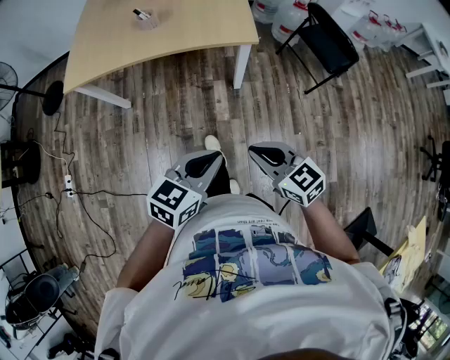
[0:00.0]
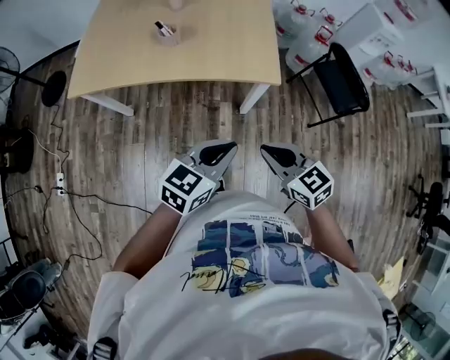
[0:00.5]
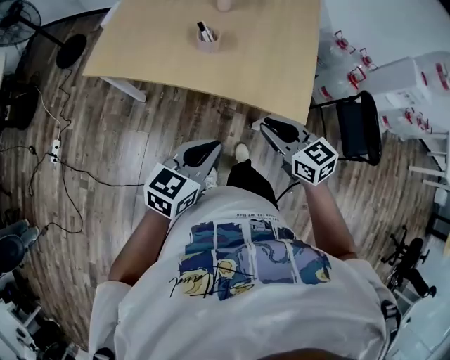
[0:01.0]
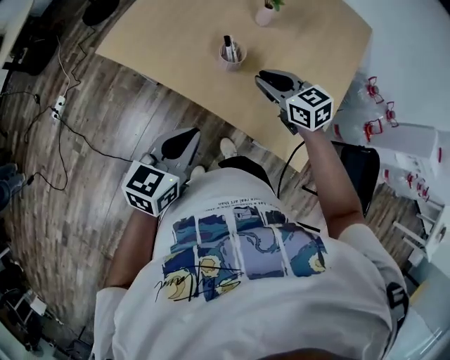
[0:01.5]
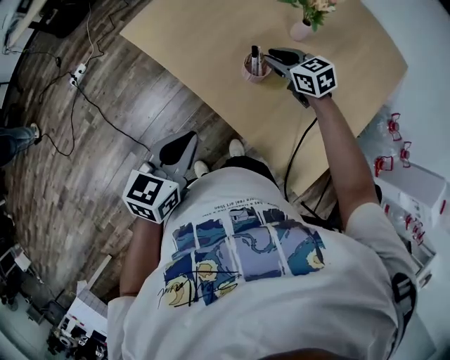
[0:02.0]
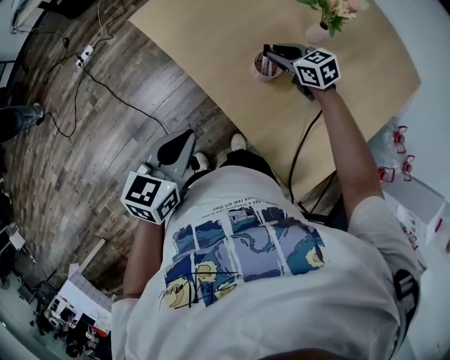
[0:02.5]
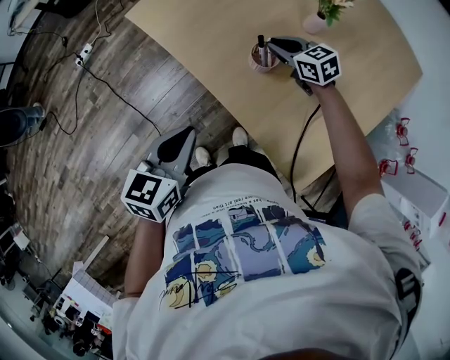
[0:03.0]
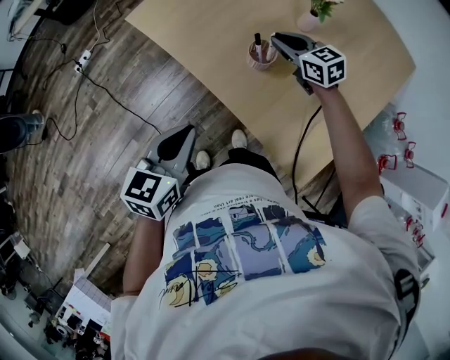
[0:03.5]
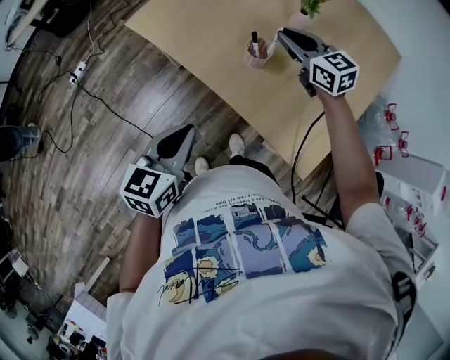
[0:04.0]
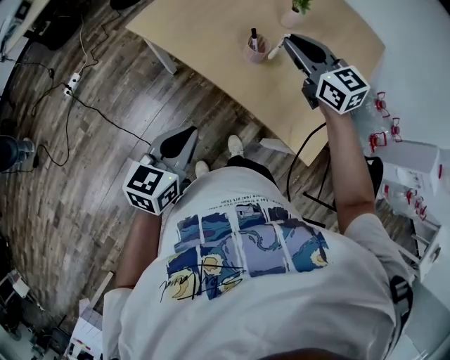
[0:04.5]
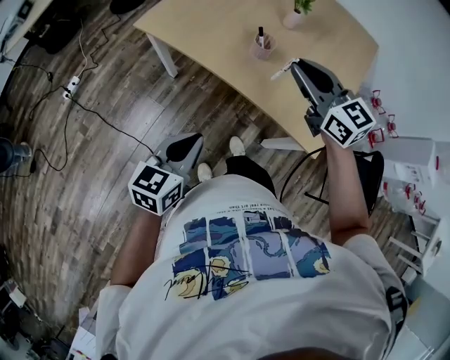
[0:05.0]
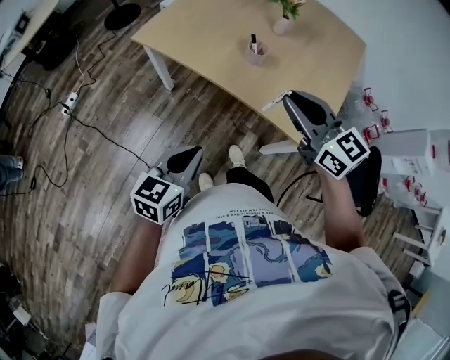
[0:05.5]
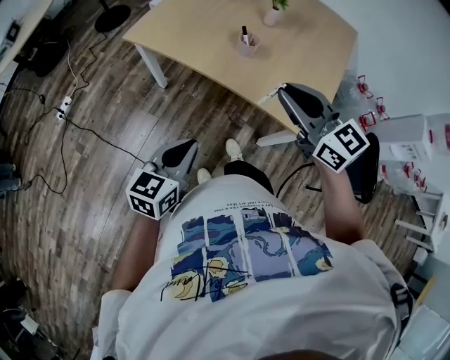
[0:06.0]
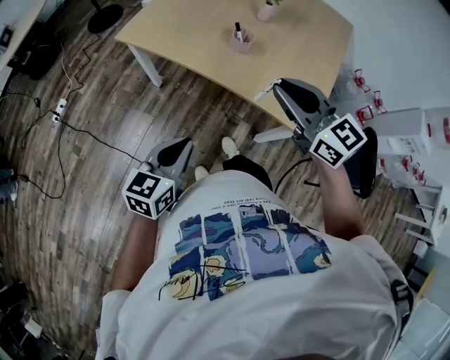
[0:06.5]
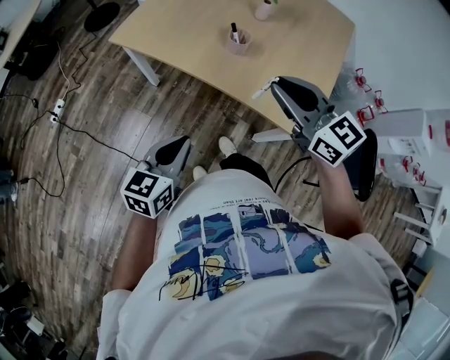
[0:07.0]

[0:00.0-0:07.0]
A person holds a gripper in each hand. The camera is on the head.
0:00.0 to 0:02.0: The pair of grippers is taken roughly 60 cm. The right gripper swivels some 50 degrees. The left gripper turns by approximately 60 degrees.
0:02.0 to 0:03.5: The grippers move only a little.
0:03.5 to 0:05.0: The left gripper heads backward and to the left, covering roughly 15 cm. Meanwhile the right gripper goes about 30 cm backward and upward, and swivels roughly 20 degrees.
0:05.0 to 0:07.0: The right gripper shifts about 5 cm backward.

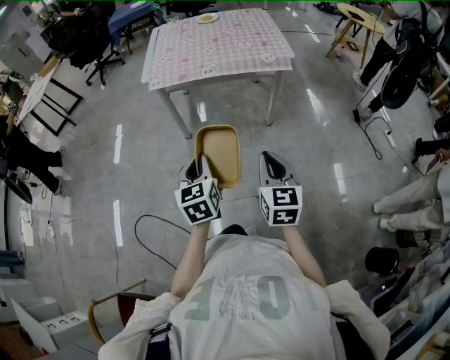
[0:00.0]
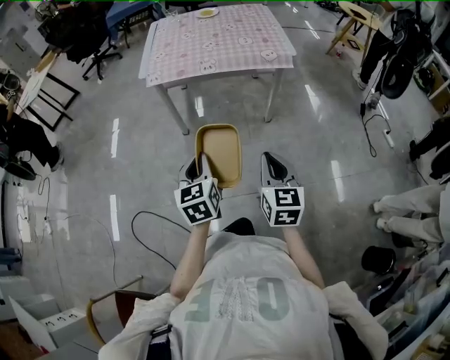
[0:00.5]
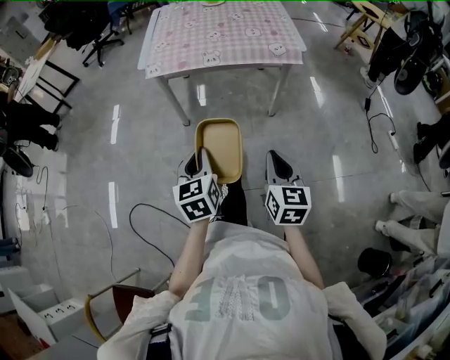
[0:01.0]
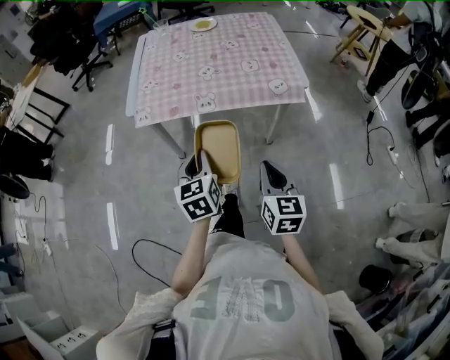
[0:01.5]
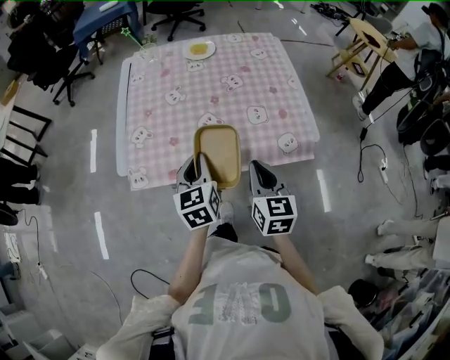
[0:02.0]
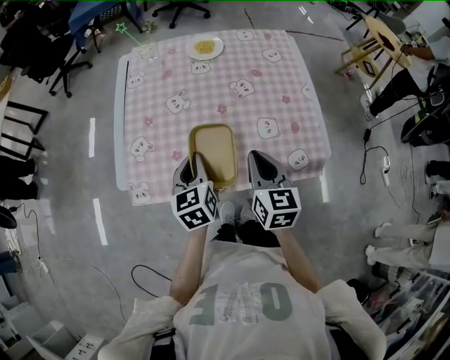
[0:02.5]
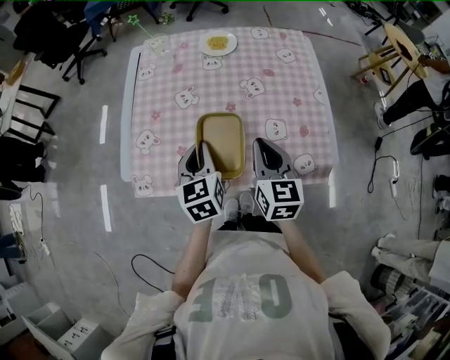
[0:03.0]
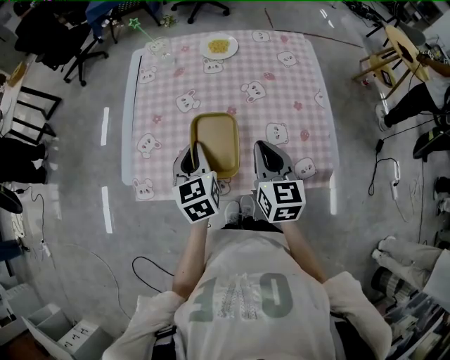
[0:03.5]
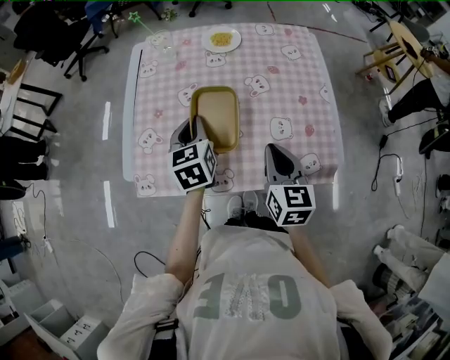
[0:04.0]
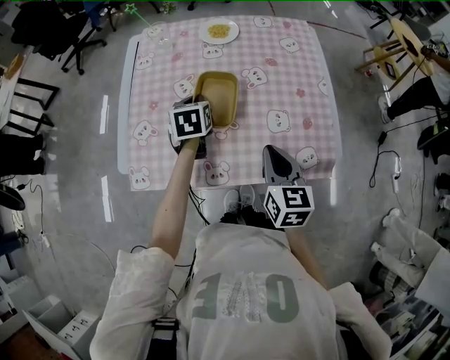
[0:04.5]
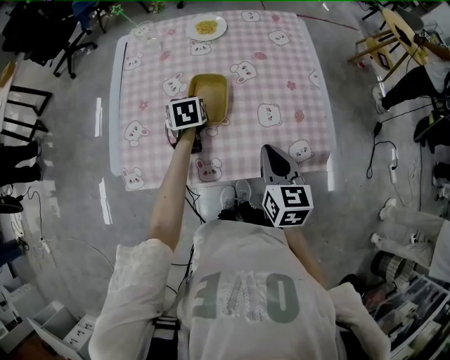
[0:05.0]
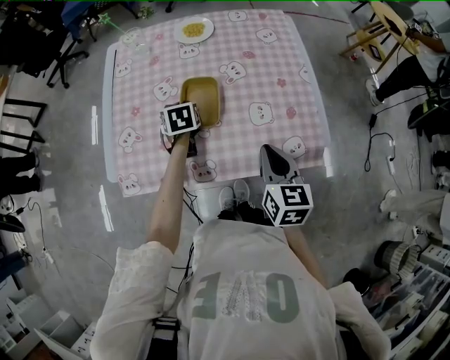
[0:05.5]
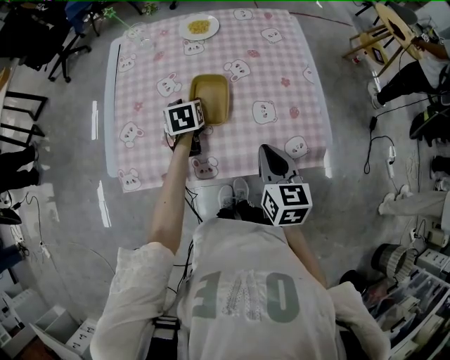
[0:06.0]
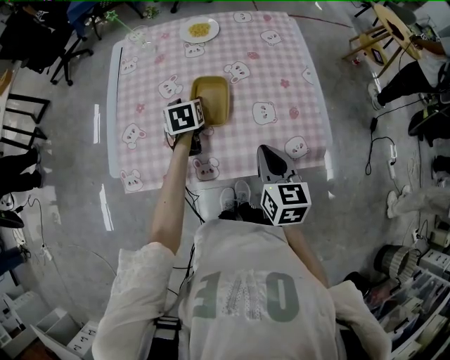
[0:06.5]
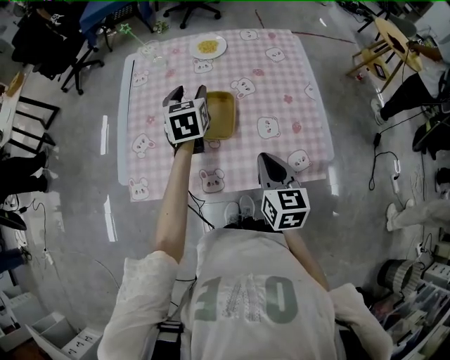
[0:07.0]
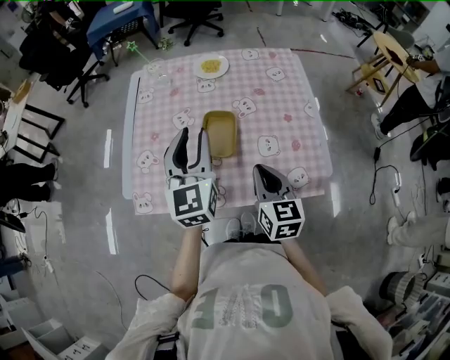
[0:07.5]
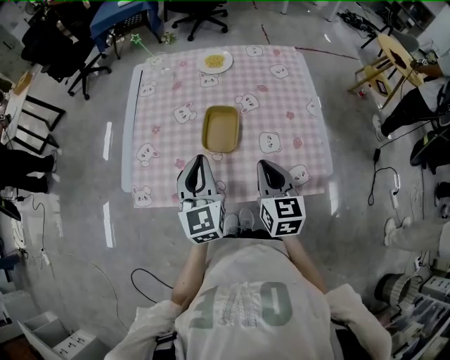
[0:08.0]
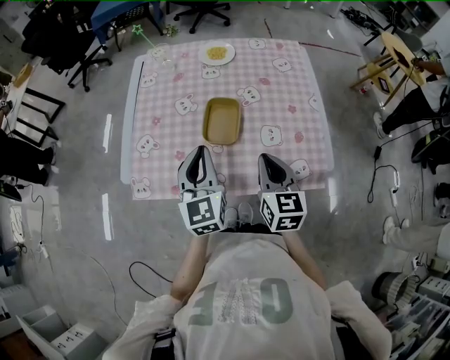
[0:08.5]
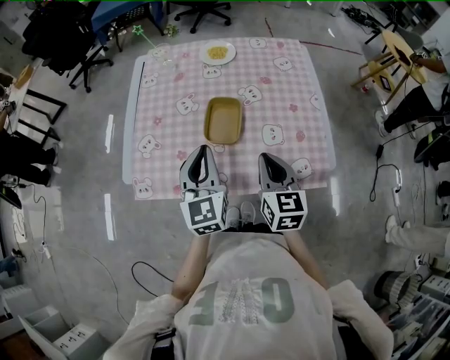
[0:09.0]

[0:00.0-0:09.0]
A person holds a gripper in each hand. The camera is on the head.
0:00.0 to 0:02.0: The pair of grippers is taken forward, about 50 cm.
0:02.0 to 0:04.5: The left gripper shifts about 25 cm forward, and turns by about 20 degrees; the right gripper shifts roughly 10 cm forward.
0:04.5 to 0:07.0: The left gripper heads upward, covering roughly 10 cm, and opens.
0:07.0 to 0:09.0: The left gripper moves backward, approximately 20 cm, and closes.

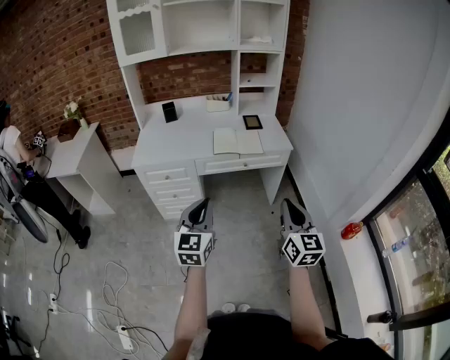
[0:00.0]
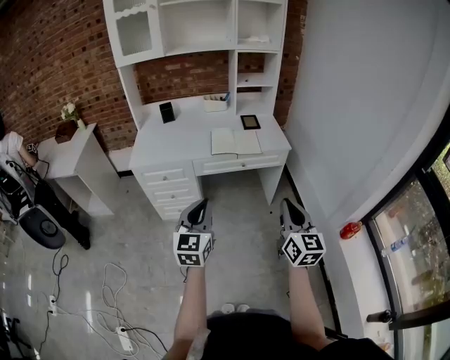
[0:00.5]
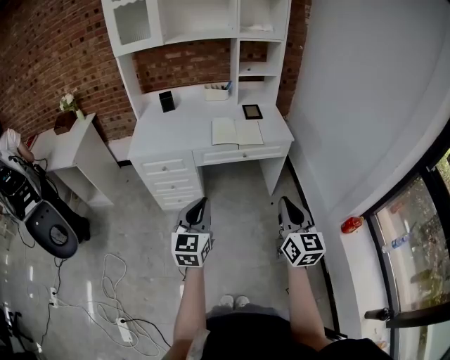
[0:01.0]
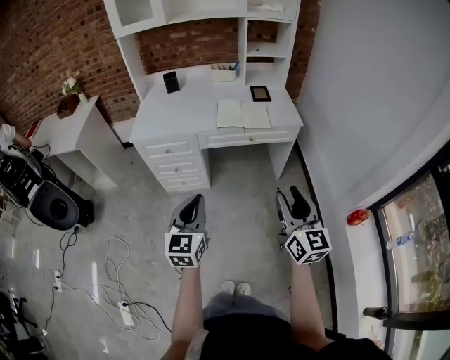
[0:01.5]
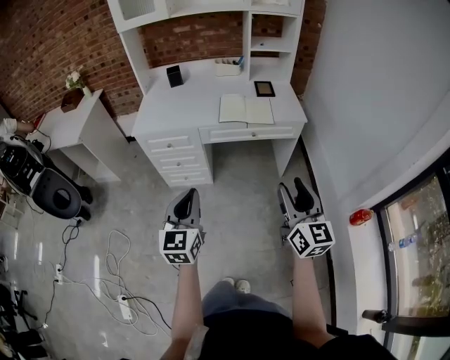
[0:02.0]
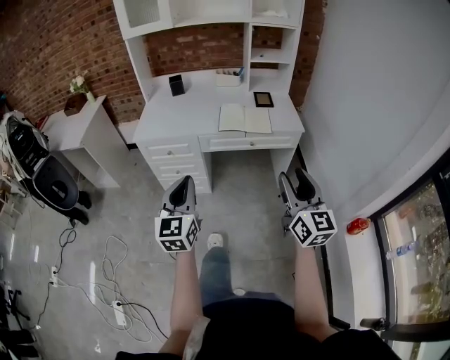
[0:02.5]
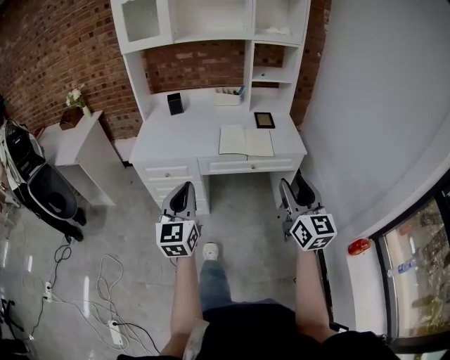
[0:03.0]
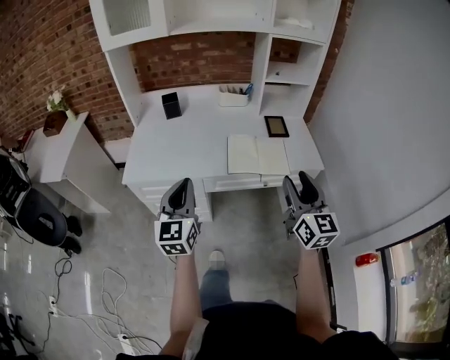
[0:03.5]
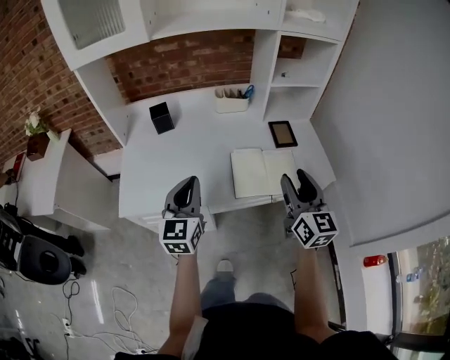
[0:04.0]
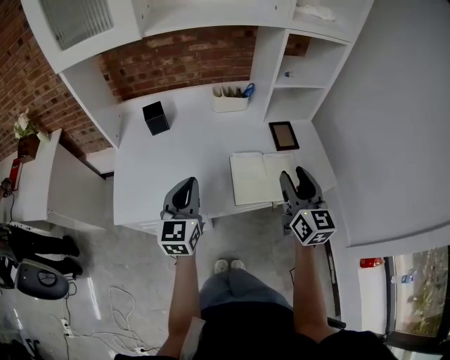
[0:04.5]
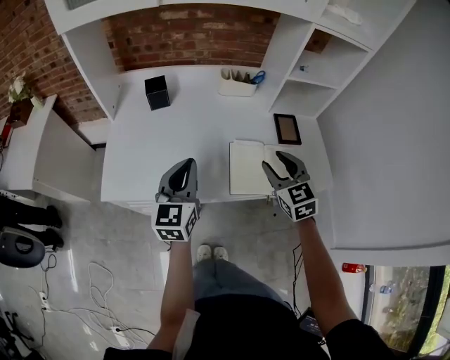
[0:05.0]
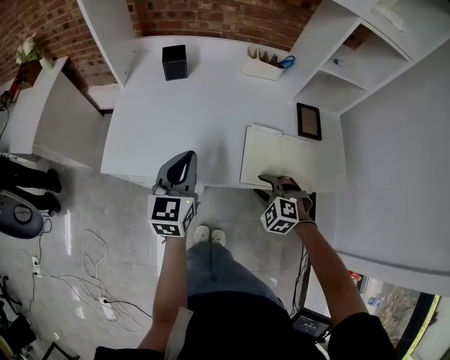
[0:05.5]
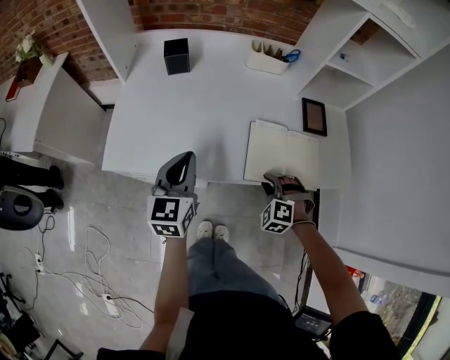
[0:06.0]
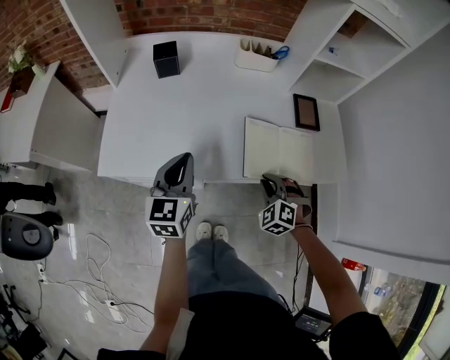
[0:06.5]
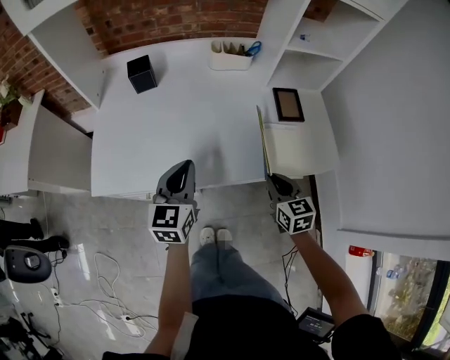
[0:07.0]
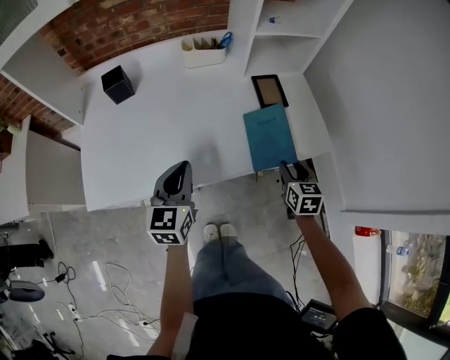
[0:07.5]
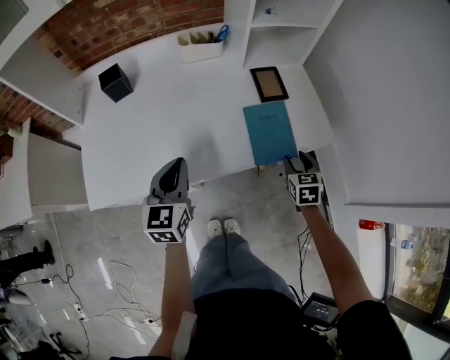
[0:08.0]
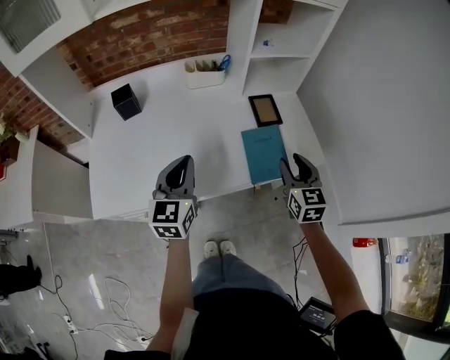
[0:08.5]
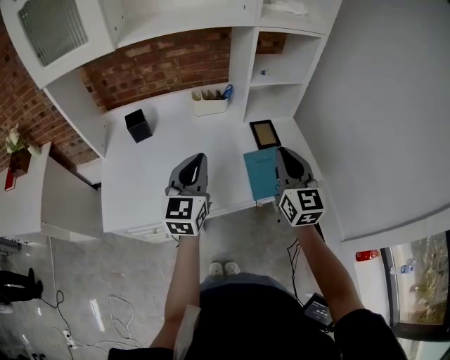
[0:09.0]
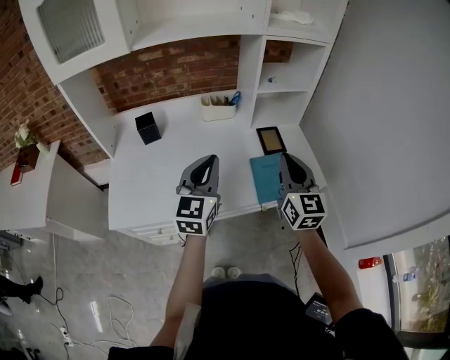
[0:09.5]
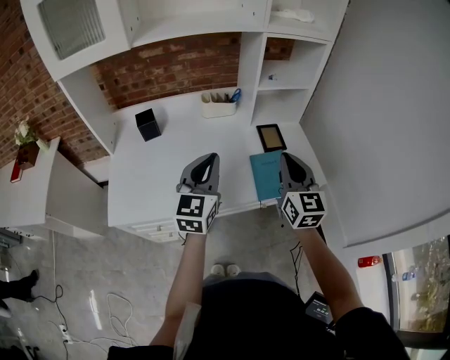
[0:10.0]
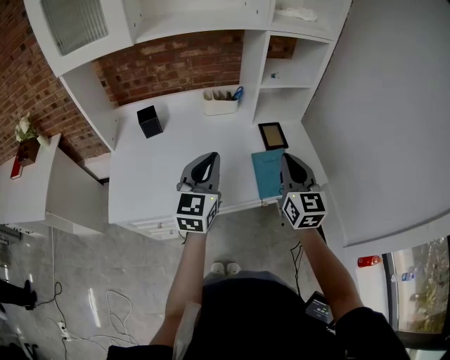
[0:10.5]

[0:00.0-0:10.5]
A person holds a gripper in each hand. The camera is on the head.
0:00.0 to 0:02.0: The right gripper opens its fingers.
0:02.0 to 0:04.0: Both grippers are carried forward, about 50 cm.
0:04.0 to 0:06.5: The right gripper moves downward, roughly 25 cm, angles its fingers downward, by some 50 degrees, and closes its fingers. Meanwhile the left gripper is displaced downward by some 10 cm.
0:06.5 to 0:08.5: The left gripper heads to the right, covering some 10 cm, while the right gripper shifts approximately 20 cm to the right and upward, twists roughly 60 degrees clockwise, seen from behind, and opens its fingers.
0:08.5 to 0:10.5: The right gripper shifts approximately 15 cm upward and to the left, and closes its fingers. The left gripper moves upward, roughly 10 cm.
